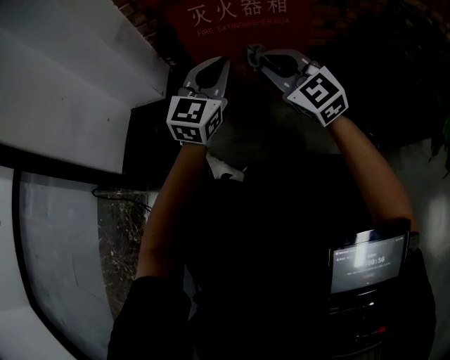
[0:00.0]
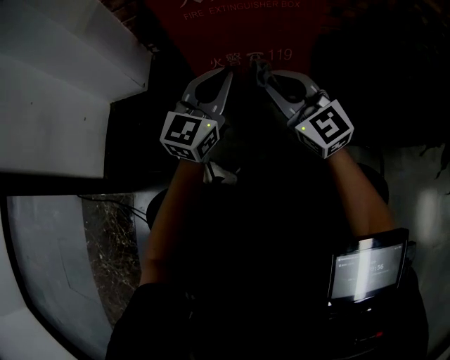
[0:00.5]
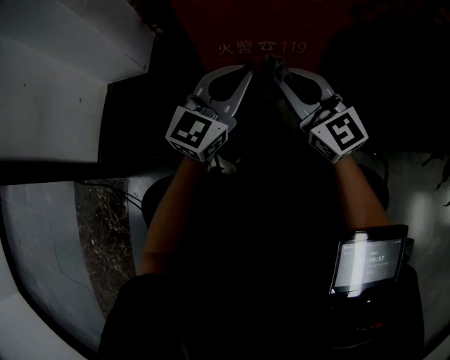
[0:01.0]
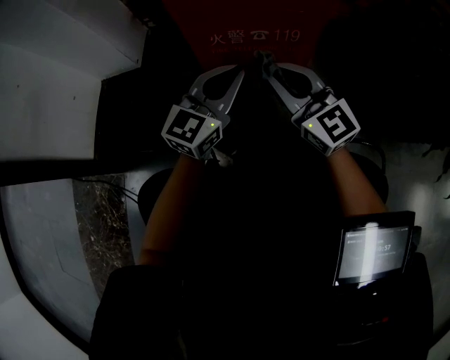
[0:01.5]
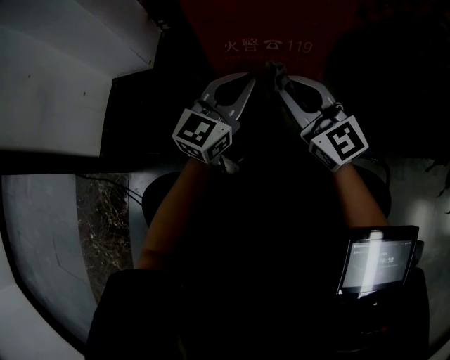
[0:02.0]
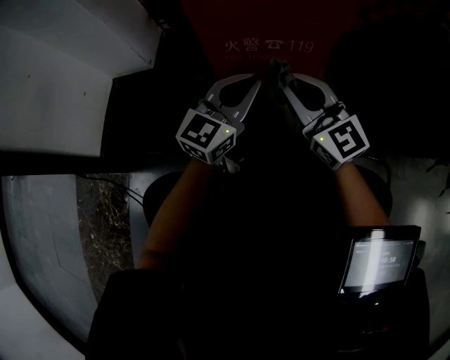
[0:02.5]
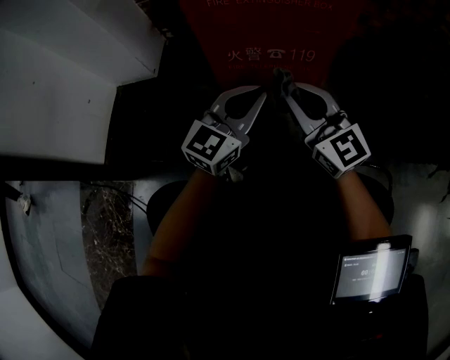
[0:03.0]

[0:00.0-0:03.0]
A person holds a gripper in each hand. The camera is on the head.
0:00.0 to 0:01.5: The left gripper travels downward by roughly 10 cm.

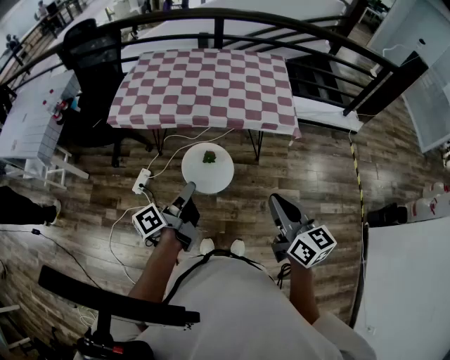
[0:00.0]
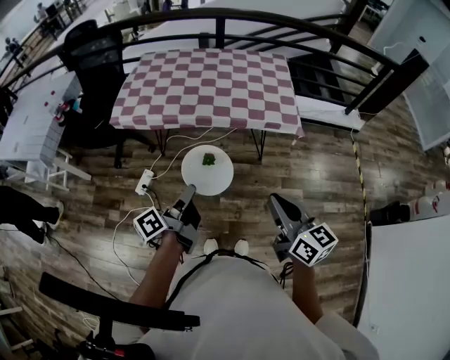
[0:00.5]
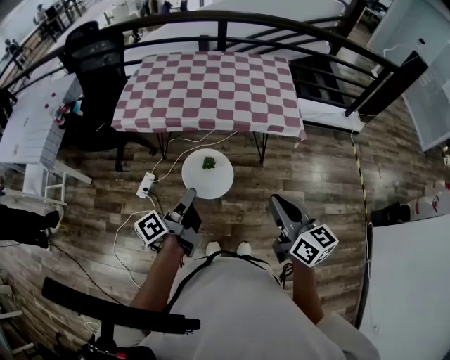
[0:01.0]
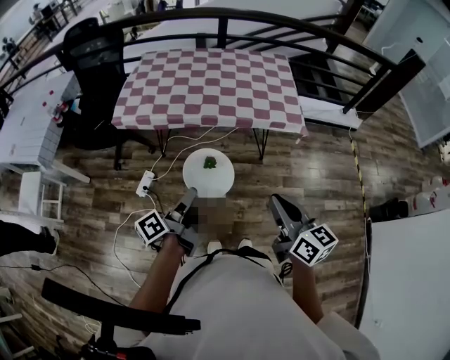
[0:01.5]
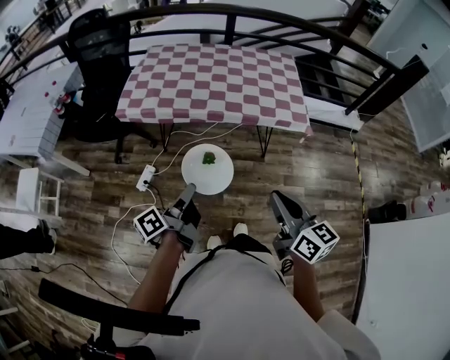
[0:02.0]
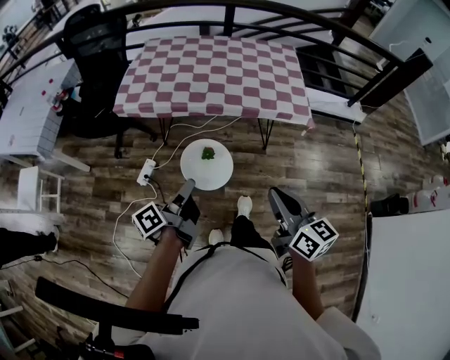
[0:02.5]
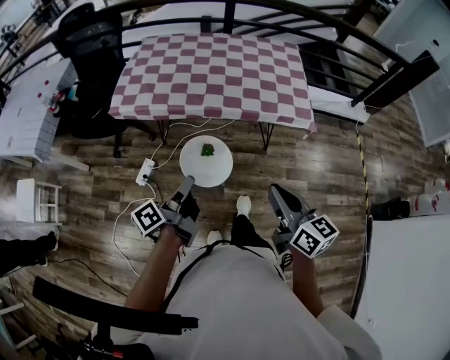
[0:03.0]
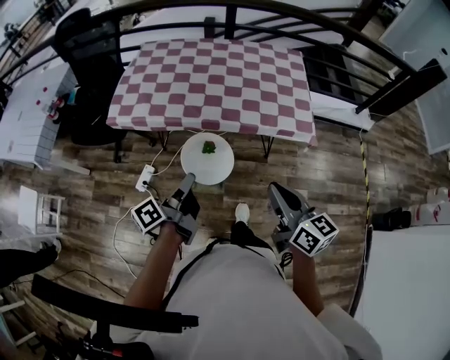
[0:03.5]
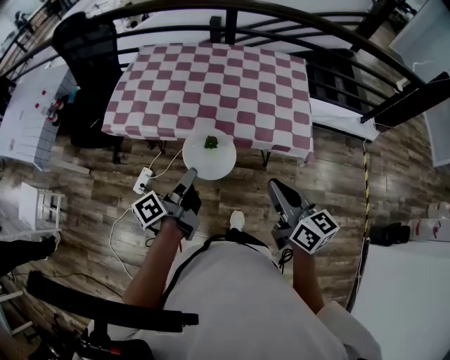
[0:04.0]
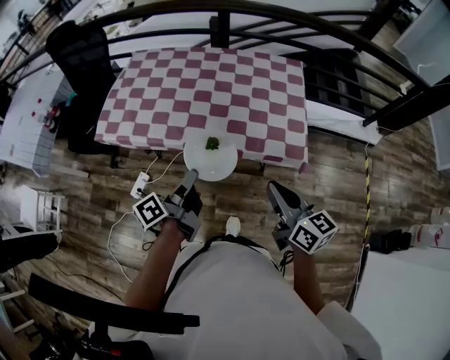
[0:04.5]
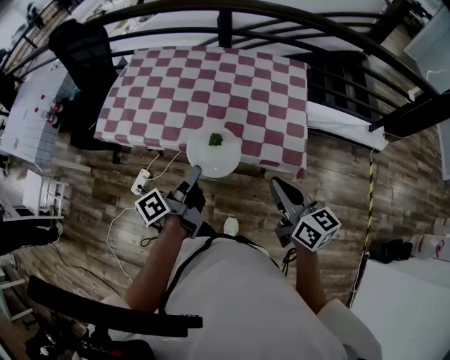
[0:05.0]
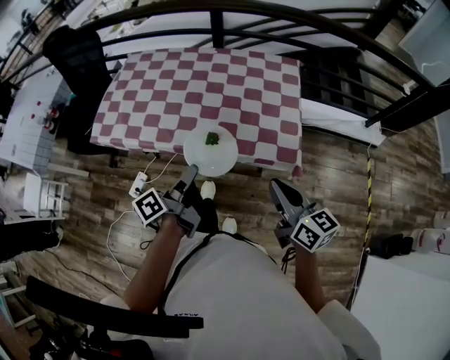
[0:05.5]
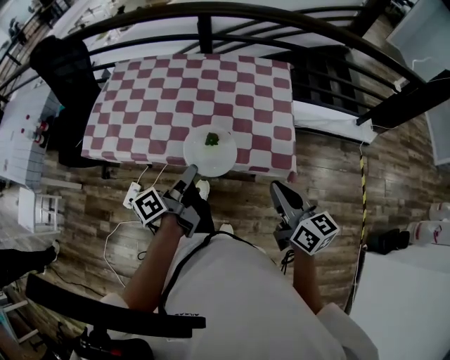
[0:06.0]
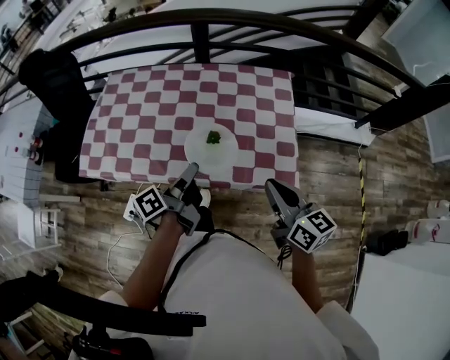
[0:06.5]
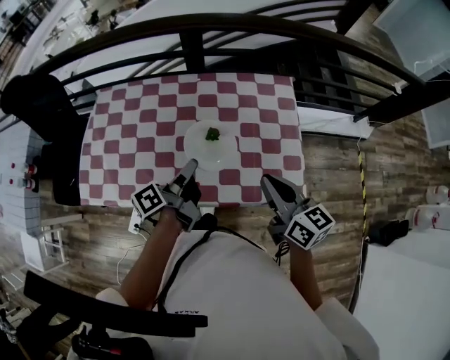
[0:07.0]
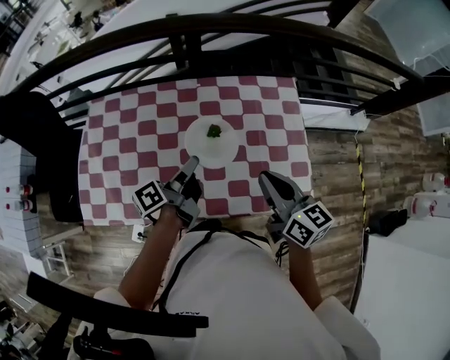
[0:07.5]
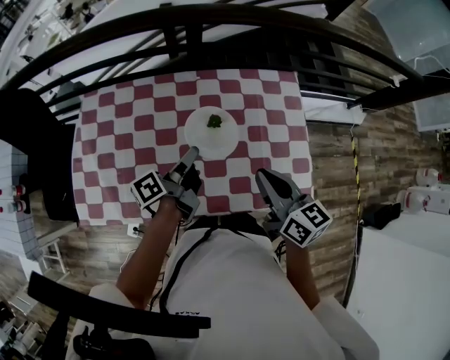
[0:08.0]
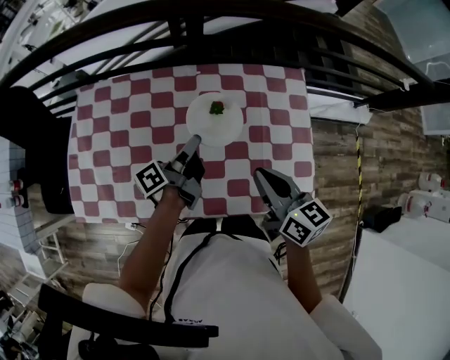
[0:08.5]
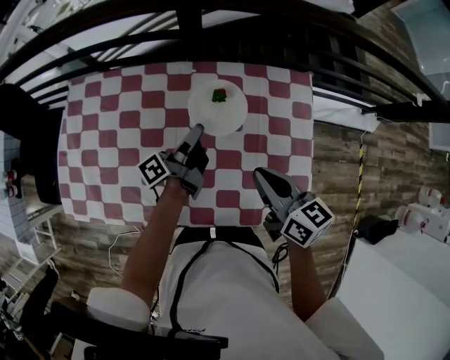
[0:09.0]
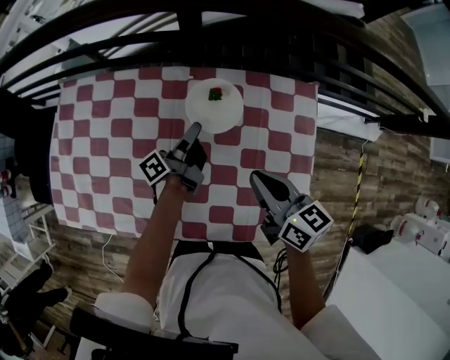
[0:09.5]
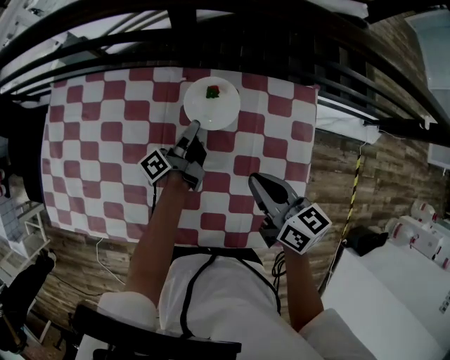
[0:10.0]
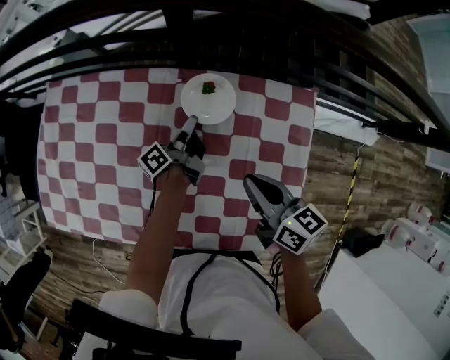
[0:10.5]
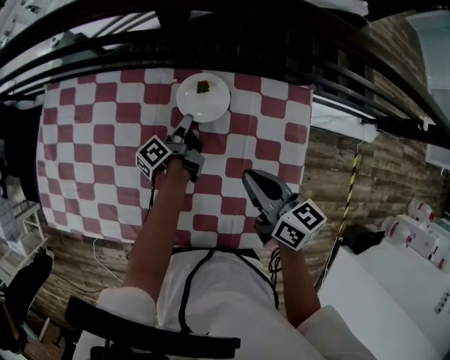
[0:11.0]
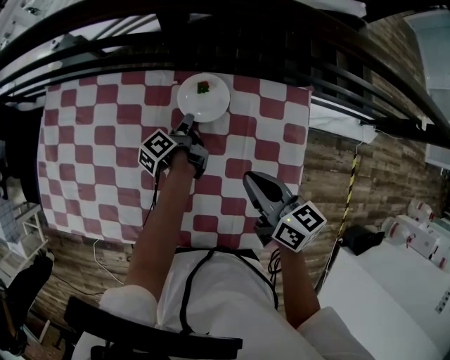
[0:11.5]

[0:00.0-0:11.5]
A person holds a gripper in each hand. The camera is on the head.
0:00.0 to 0:02.0: The right gripper moves approximately 10 cm.
0:02.0 to 0:04.0: The right gripper ends up about 25 cm from where it was.
0:04.0 to 0:06.0: The right gripper shifts by roughly 20 cm.
0:06.0 to 0:07.5: The right gripper changes place by roughly 30 cm.
0:07.5 to 0:09.5: The right gripper changes place by some 20 cm.

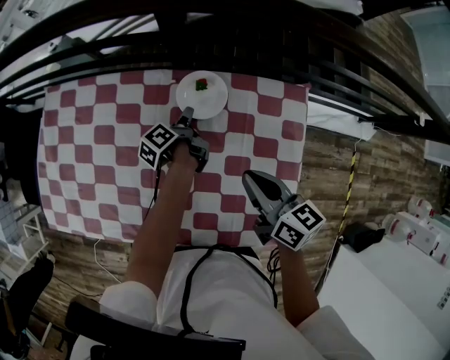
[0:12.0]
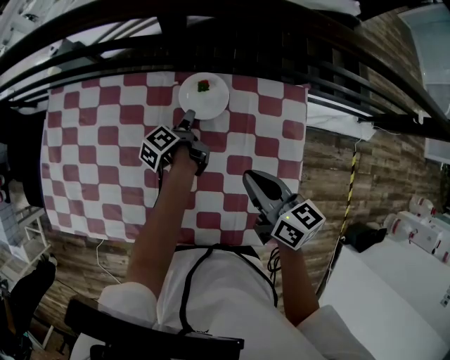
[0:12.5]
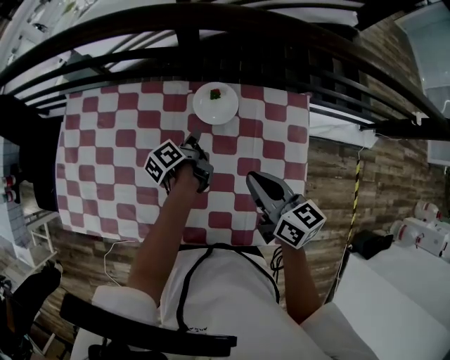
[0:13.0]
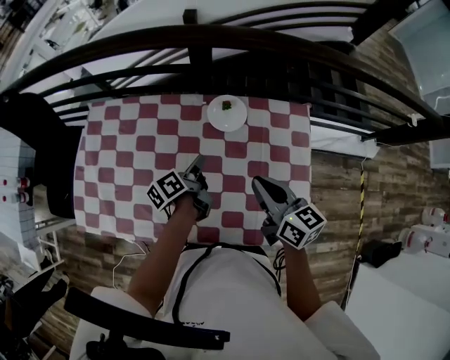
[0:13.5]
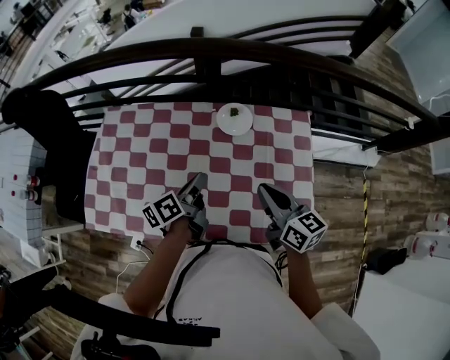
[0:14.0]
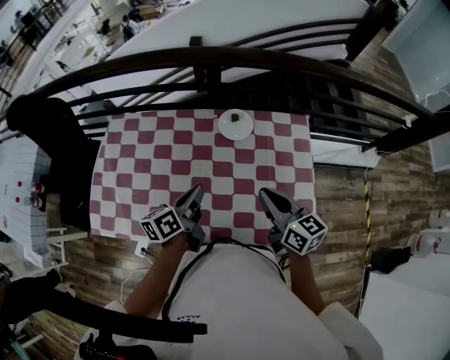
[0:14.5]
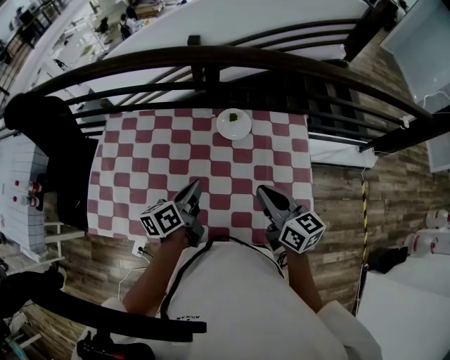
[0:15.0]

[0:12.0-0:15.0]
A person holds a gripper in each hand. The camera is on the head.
0:12.0 to 0:13.5: The right gripper moves approximately 10 cm.
0:13.5 to 0:15.0: The right gripper shifts by some 5 cm.

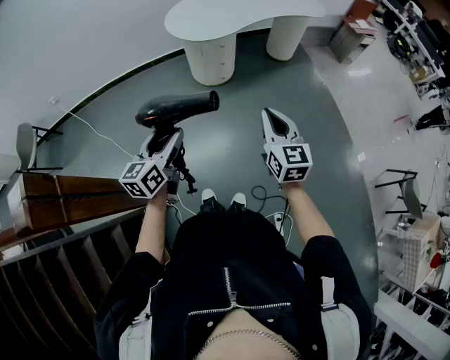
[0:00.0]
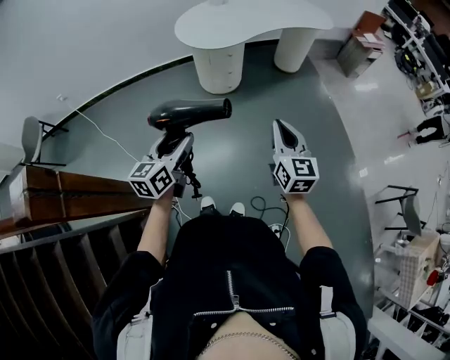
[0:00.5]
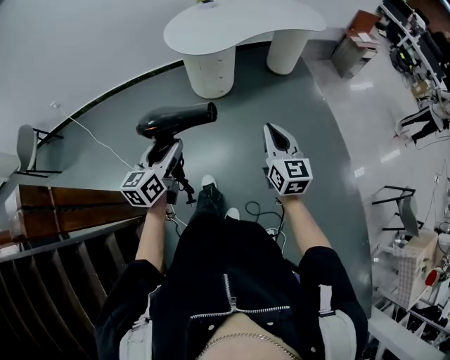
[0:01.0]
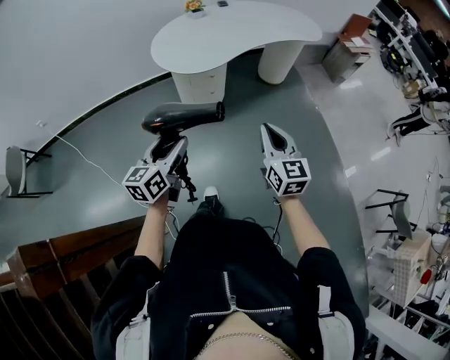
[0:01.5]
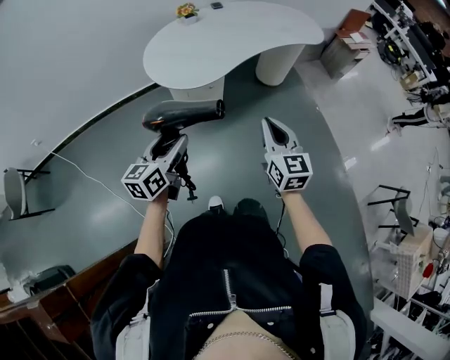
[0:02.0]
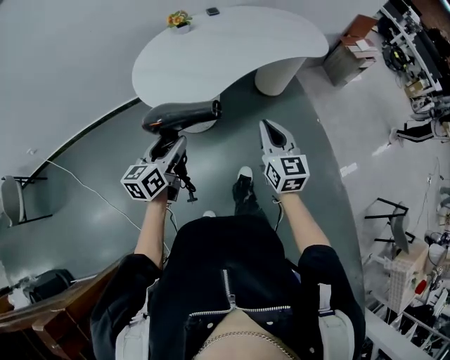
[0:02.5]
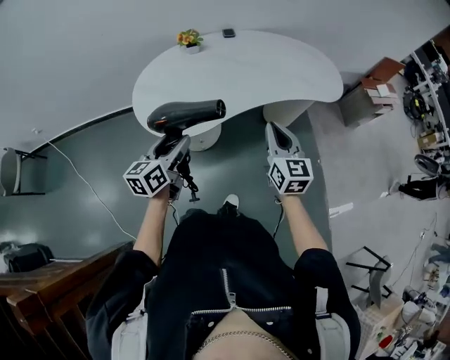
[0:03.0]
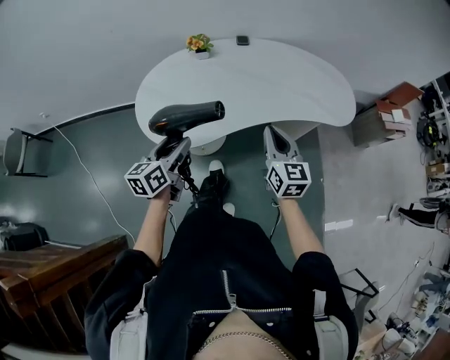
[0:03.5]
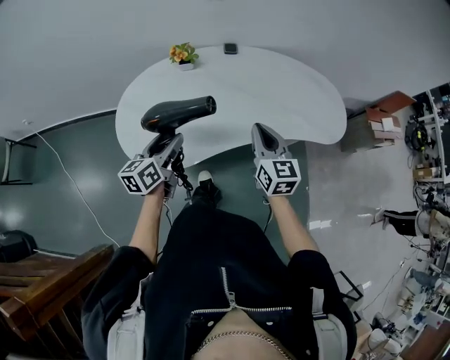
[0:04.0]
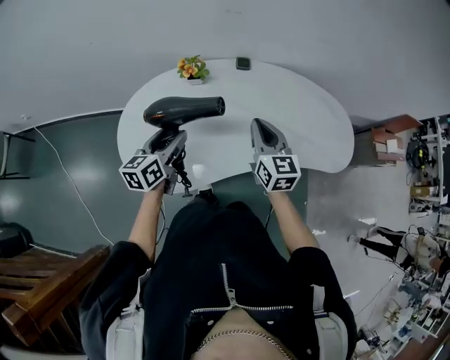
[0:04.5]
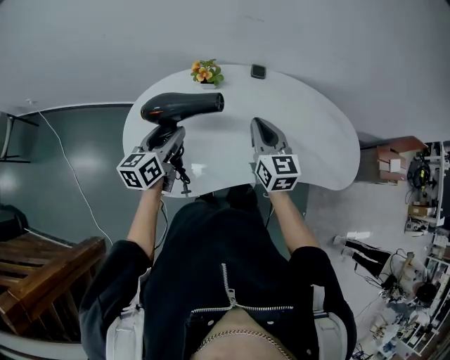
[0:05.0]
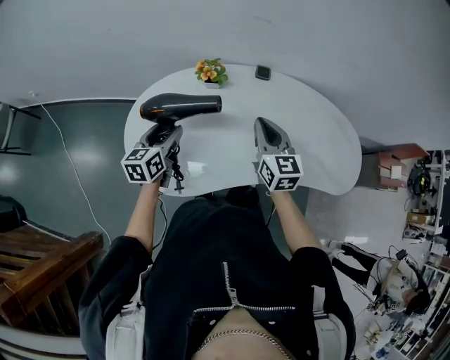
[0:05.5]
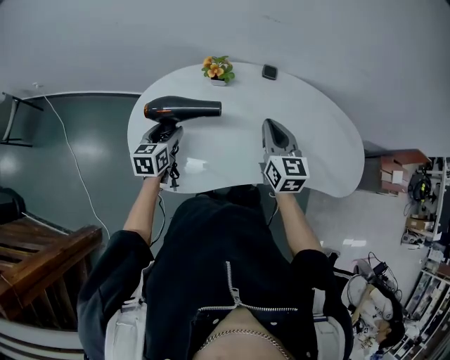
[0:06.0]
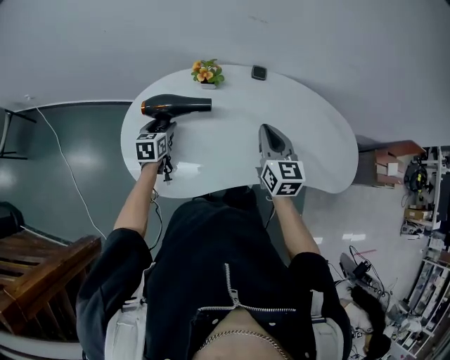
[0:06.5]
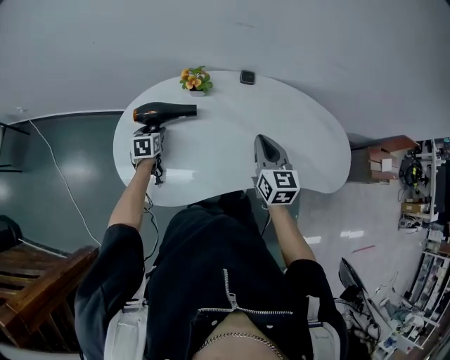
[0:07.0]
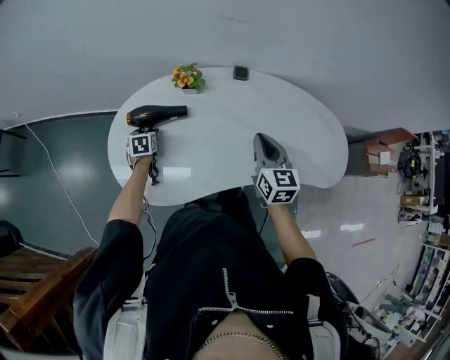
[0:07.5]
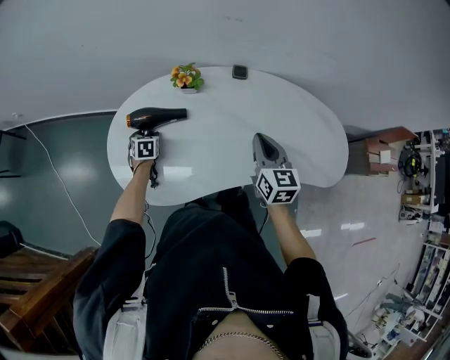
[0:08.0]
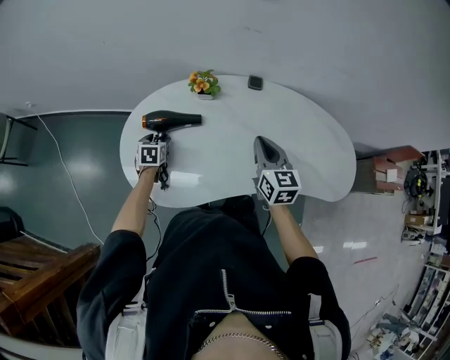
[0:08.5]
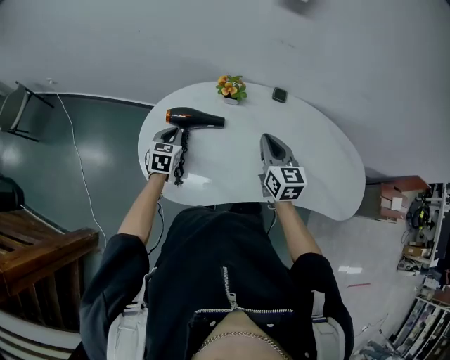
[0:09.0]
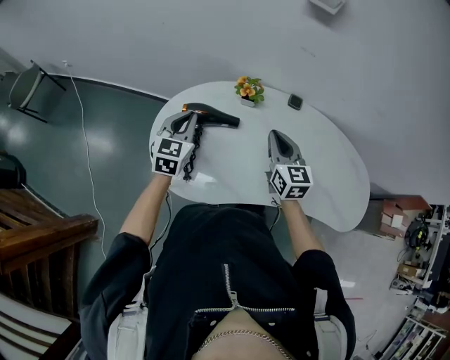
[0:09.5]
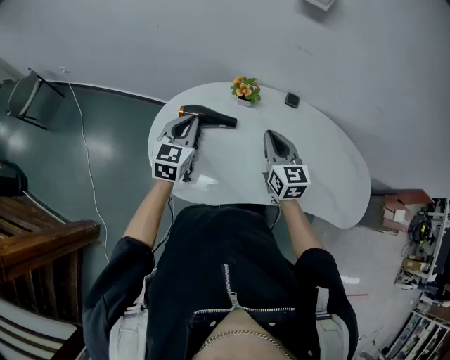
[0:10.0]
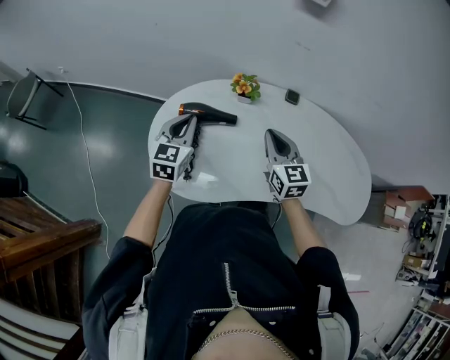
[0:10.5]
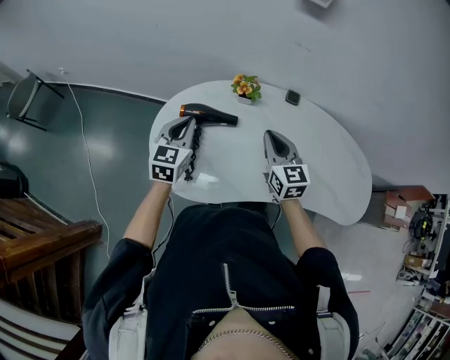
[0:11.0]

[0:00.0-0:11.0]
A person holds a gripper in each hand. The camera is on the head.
0:00.0 to 0:02.0: The two grippers go about 30 cm forward.
0:02.0 to 0:03.5: The grippers both shift forward by some 35 cm. The left gripper rotates approximately 20 degrees.
0:03.5 to 0:05.5: Both grippers travel together forward, approximately 25 cm.
0:05.5 to 0:07.5: The left gripper goes some 20 cm downward and forward, and angles its fingers downward, by approximately 30 degrees, while the right gripper shifts approximately 5 cm to the right.
0:07.5 to 0:09.0: The right gripper travels to the left by about 10 cm; the left gripper heads upward, covering roughly 10 cm, and closes its fingers.
0:09.0 to 0:11.0: The left gripper moves upward, approximately 15 cm.
